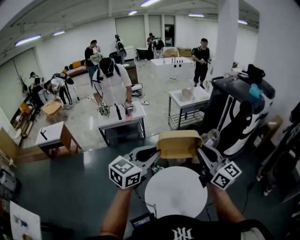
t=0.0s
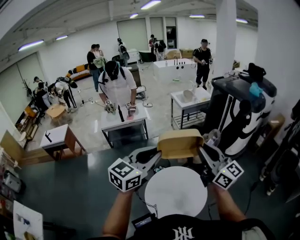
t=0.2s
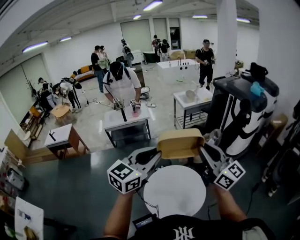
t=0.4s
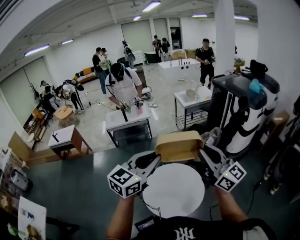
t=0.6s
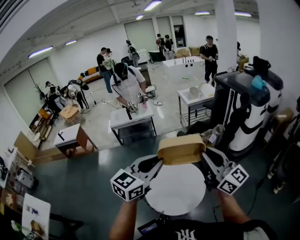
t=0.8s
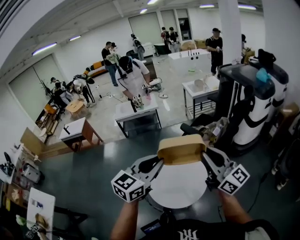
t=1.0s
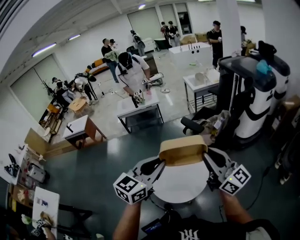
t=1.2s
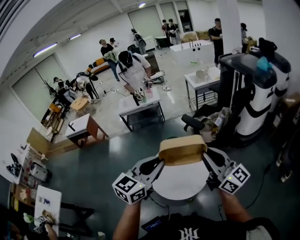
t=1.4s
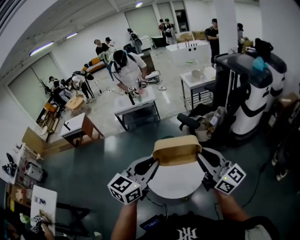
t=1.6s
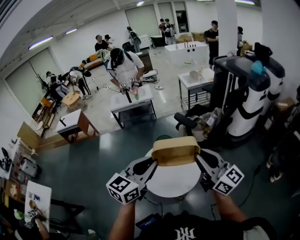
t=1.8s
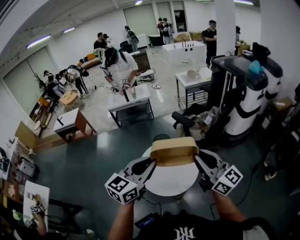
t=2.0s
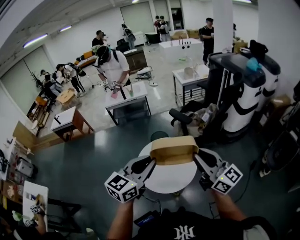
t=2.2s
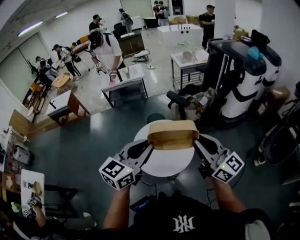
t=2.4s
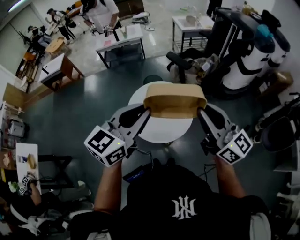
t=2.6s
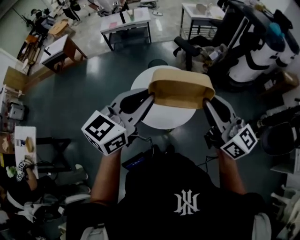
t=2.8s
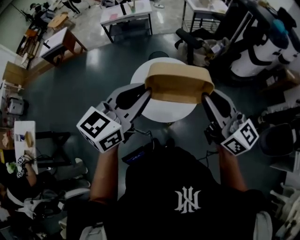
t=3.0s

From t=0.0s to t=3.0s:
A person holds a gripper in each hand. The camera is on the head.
From t=0.0s to t=1.6s: Both grippers travel together backward and to the right, about 25 cm.
From t=1.6s to t=3.0s: The right gripper ends up some 5 cm from where it was, while the left gripper moves roughly 5 cm.

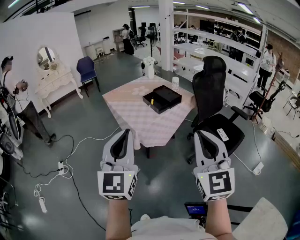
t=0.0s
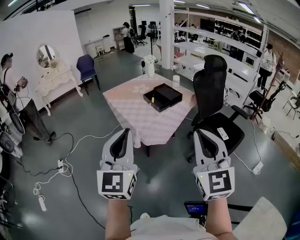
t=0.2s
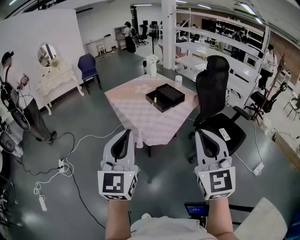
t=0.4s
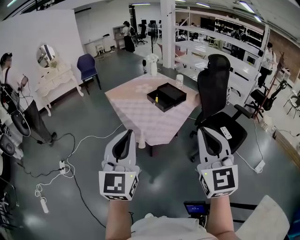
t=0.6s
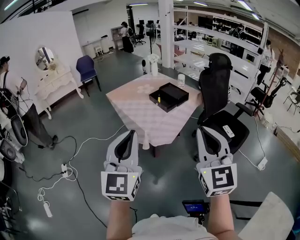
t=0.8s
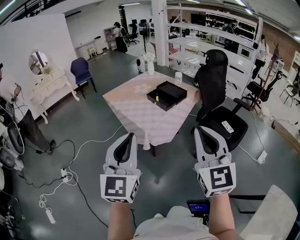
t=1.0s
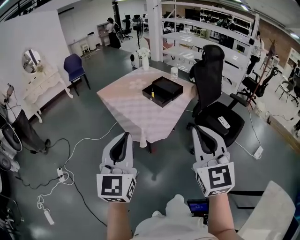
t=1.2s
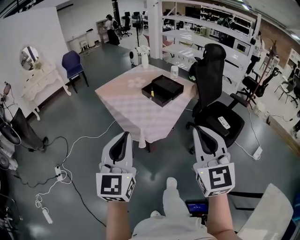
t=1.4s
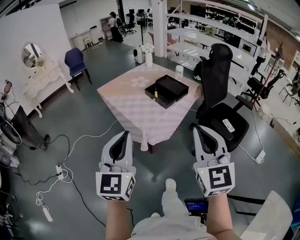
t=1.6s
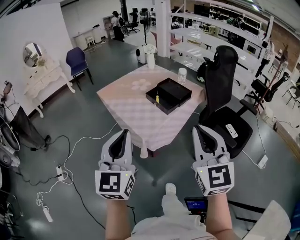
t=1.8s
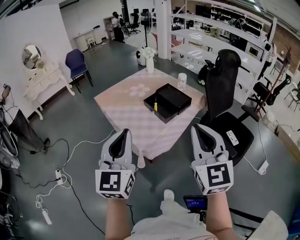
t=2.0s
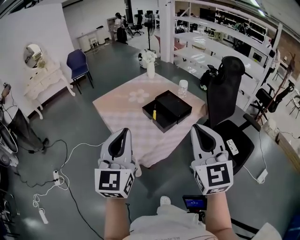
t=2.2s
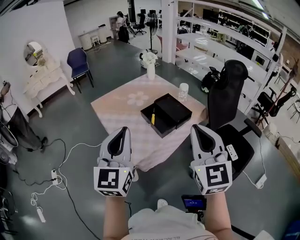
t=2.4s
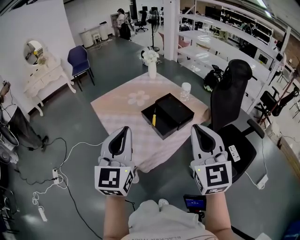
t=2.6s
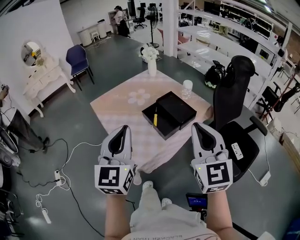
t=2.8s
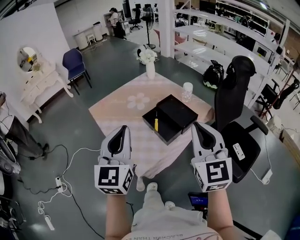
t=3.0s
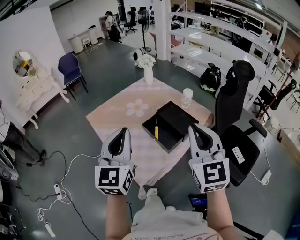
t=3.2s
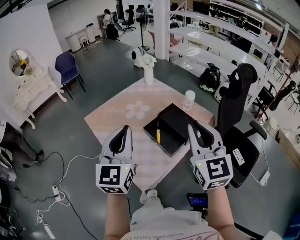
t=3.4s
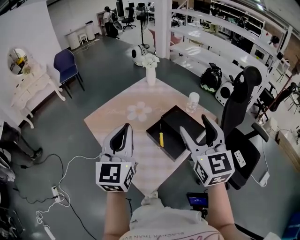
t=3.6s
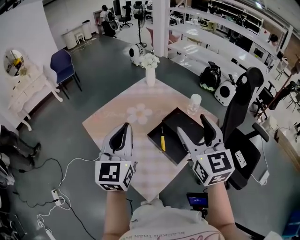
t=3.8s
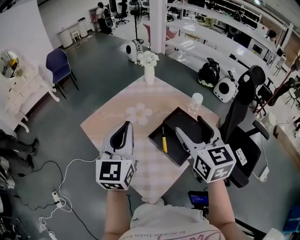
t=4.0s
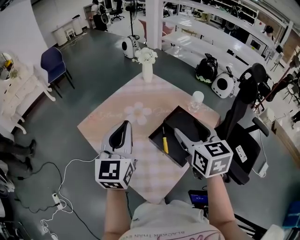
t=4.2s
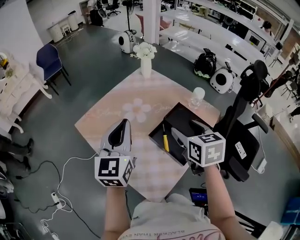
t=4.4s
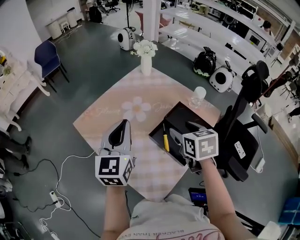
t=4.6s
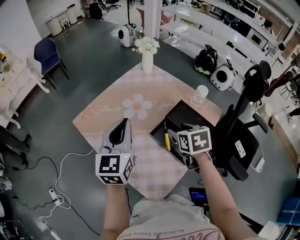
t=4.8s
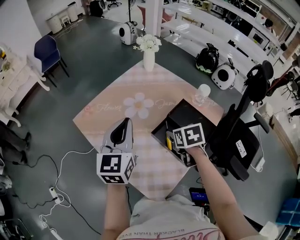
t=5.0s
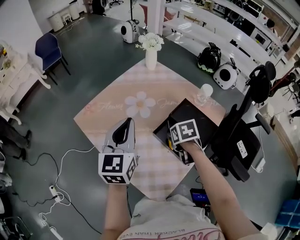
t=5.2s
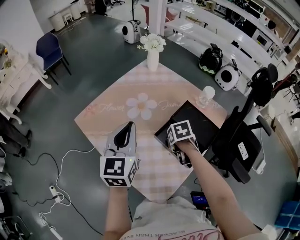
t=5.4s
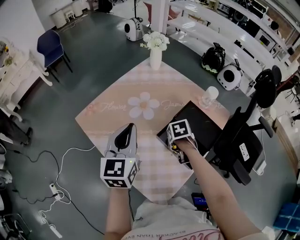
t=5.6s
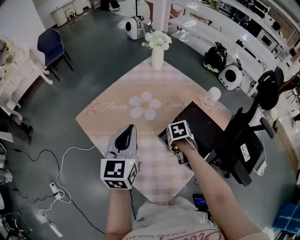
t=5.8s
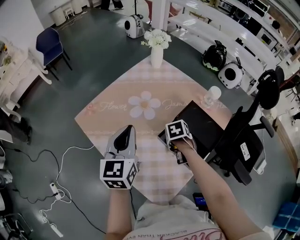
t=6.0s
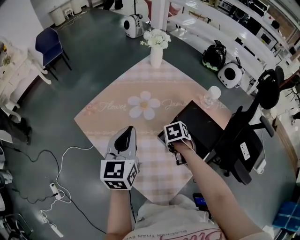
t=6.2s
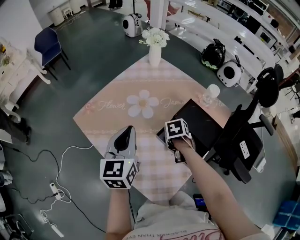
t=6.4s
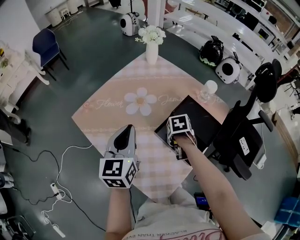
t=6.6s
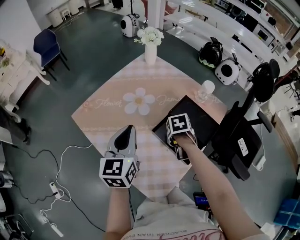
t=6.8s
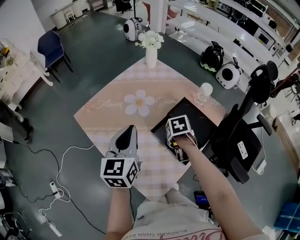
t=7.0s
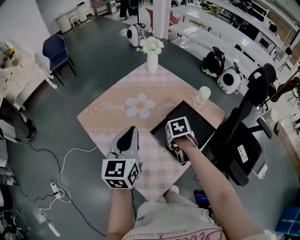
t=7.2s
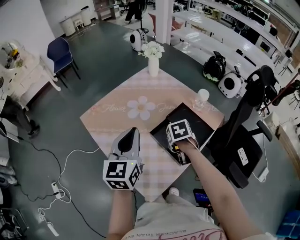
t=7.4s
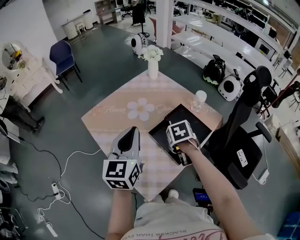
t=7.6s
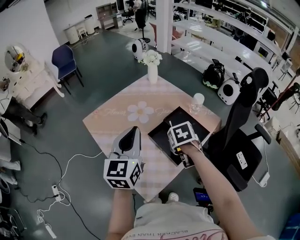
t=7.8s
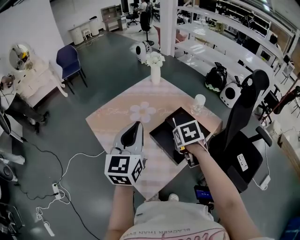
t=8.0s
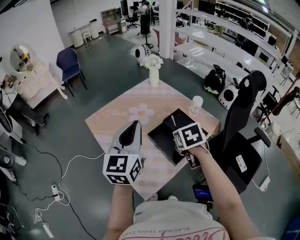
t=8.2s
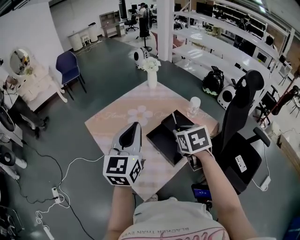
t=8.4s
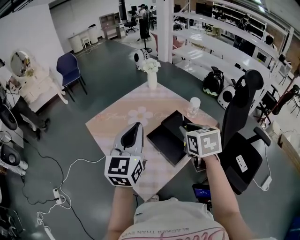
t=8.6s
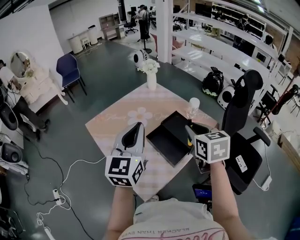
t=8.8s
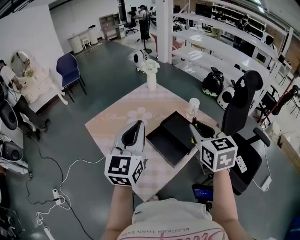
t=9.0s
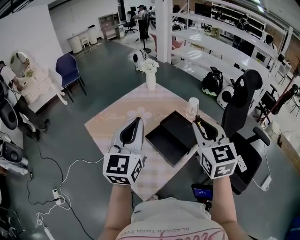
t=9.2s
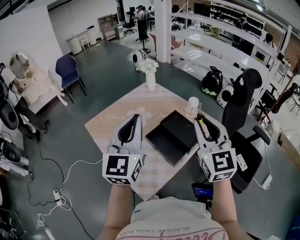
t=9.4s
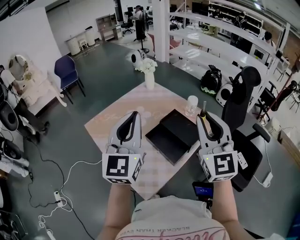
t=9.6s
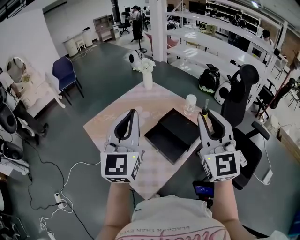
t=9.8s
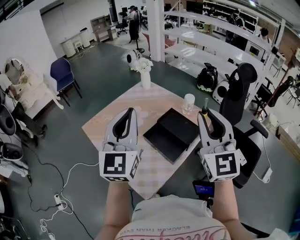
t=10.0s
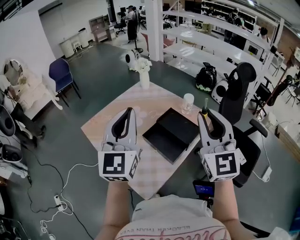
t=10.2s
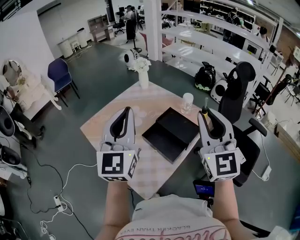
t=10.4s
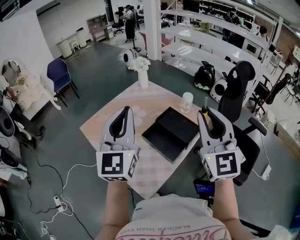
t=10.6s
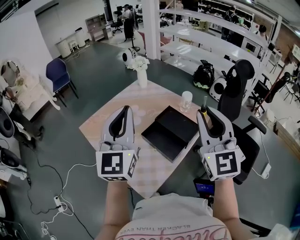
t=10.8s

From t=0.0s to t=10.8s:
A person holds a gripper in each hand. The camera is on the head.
From t=0.0s to t=1.6s: The right gripper goes roughly 15 cm forward and to the left. Meanwhile the left gripper heads forward, to the left and downward, covering approximately 15 cm.
From t=1.6s to t=3.0s: Both grippers travel together forward, roughly 30 cm.
From t=3.0s to t=4.6s: The left gripper is displaced forward by roughly 25 cm. The right gripper goes roughly 30 cm forward, downward and to the left, points its fingers roughly 40 degrees further downward, and opens its fingers.
From t=4.6s to t=6.2s: The left gripper is displaced downward by approximately 5 cm. Meanwhile the right gripper goes roughly 20 cm downward, angles its fingers downward, by some 40 degrees, and closes up.
From t=6.2s to t=7.8s: The left gripper changes place by approximately 15 cm. Meanwhile the right gripper is displaced upward by approximately 15 cm, and changes its angle by approximately 20 degrees.
From t=7.8s to t=9.2s: The right gripper shifts about 25 cm upward, and tips its fingers upward by some 50 degrees. The left gripper moves upward, some 5 cm.
From t=9.2s to t=10.8s: The right gripper heads upward, covering about 5 cm, and changes its angle by about 20 degrees.

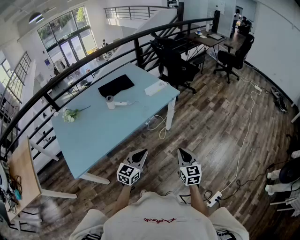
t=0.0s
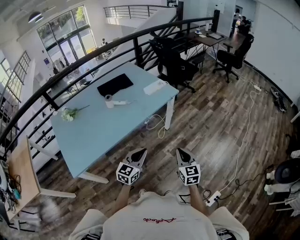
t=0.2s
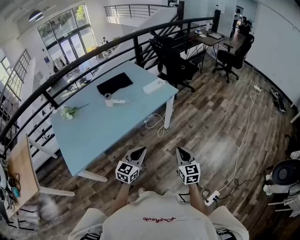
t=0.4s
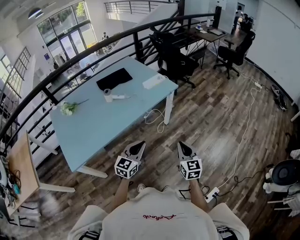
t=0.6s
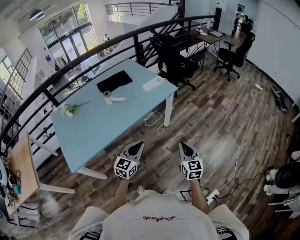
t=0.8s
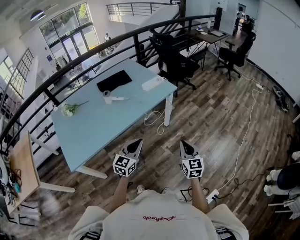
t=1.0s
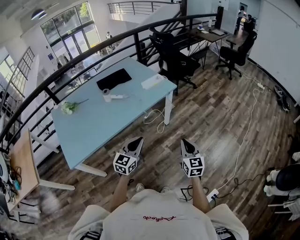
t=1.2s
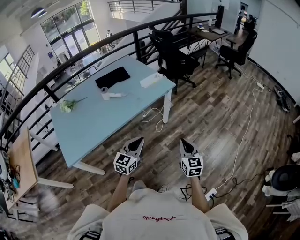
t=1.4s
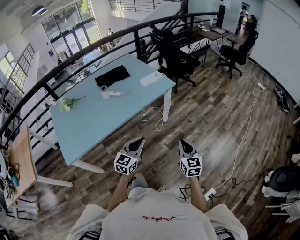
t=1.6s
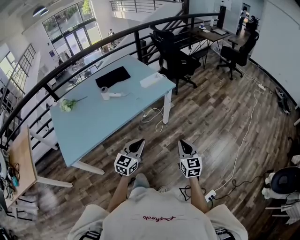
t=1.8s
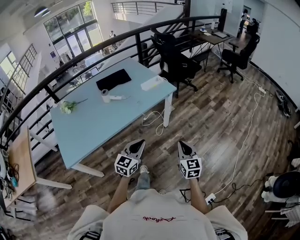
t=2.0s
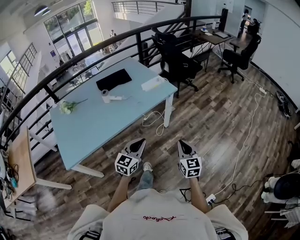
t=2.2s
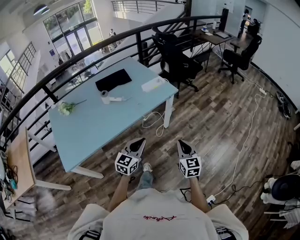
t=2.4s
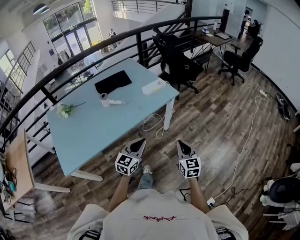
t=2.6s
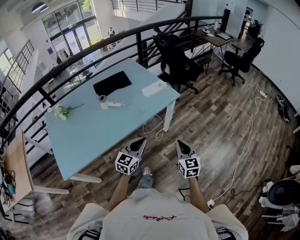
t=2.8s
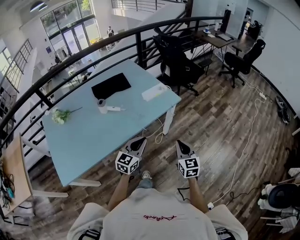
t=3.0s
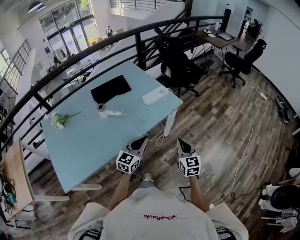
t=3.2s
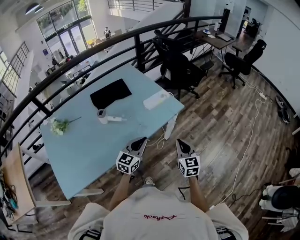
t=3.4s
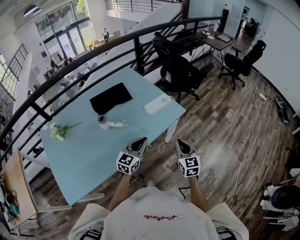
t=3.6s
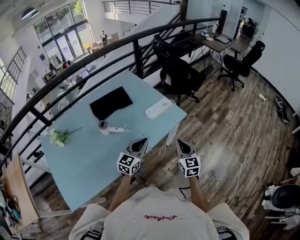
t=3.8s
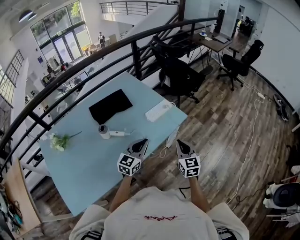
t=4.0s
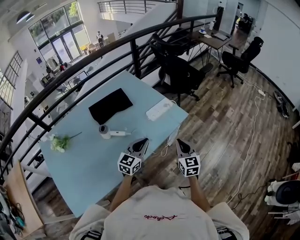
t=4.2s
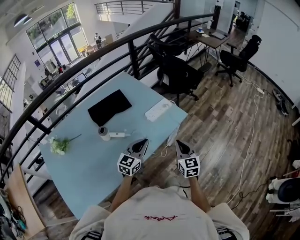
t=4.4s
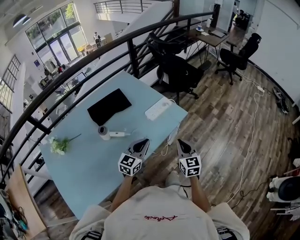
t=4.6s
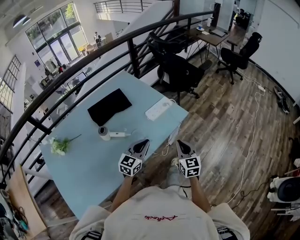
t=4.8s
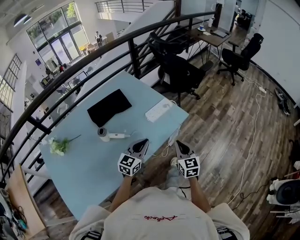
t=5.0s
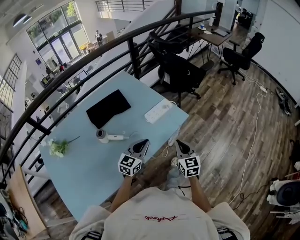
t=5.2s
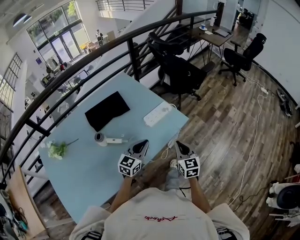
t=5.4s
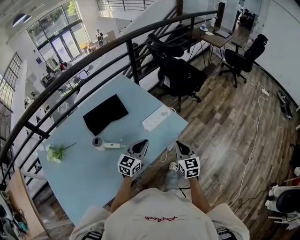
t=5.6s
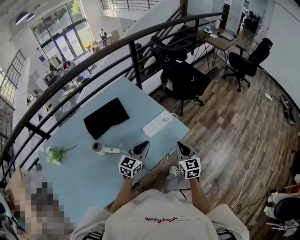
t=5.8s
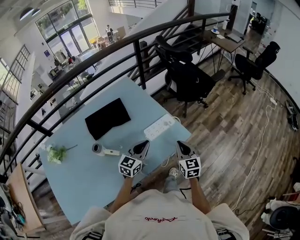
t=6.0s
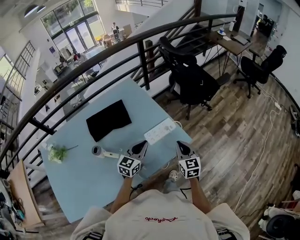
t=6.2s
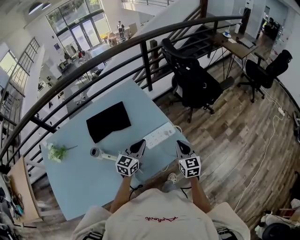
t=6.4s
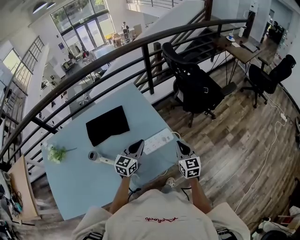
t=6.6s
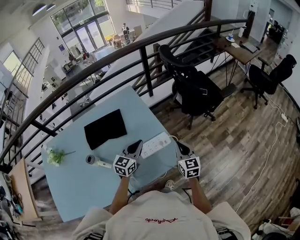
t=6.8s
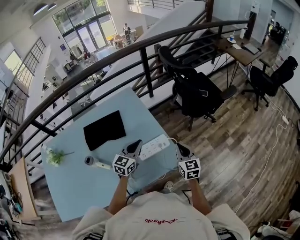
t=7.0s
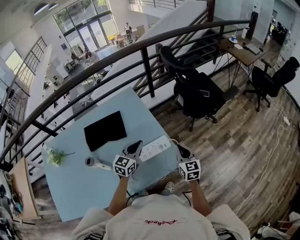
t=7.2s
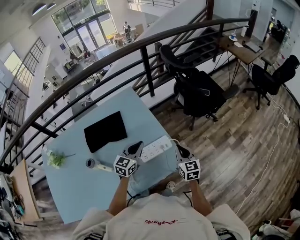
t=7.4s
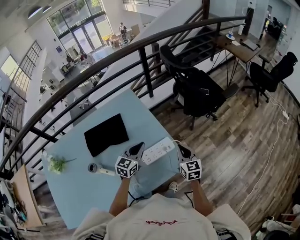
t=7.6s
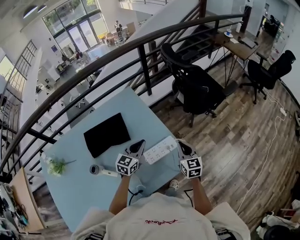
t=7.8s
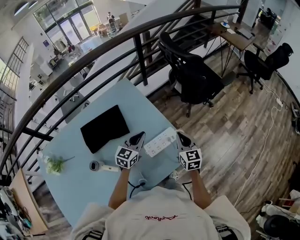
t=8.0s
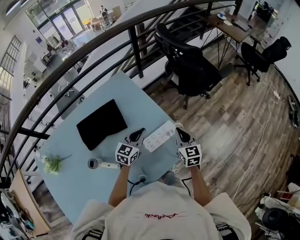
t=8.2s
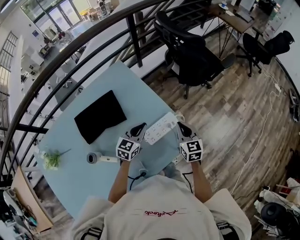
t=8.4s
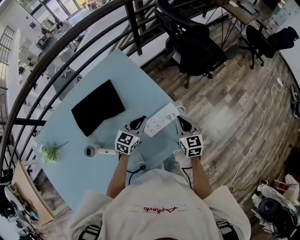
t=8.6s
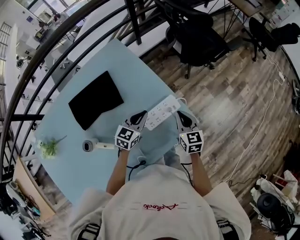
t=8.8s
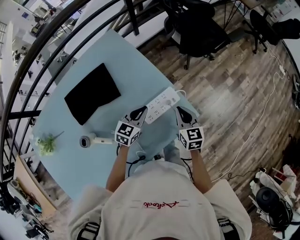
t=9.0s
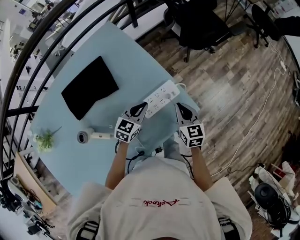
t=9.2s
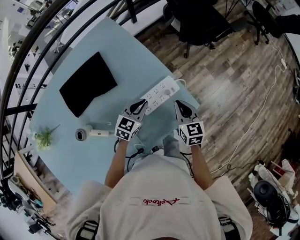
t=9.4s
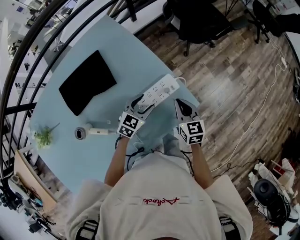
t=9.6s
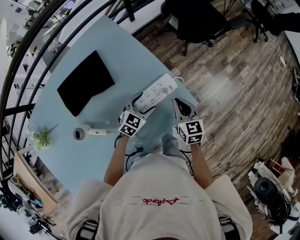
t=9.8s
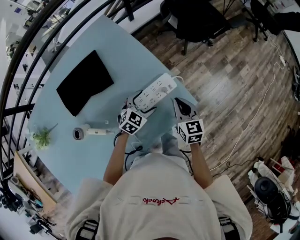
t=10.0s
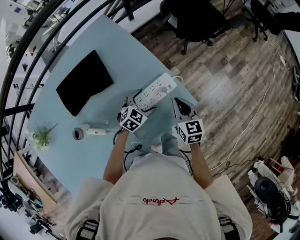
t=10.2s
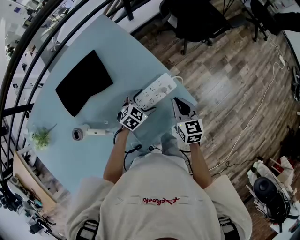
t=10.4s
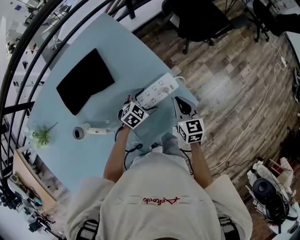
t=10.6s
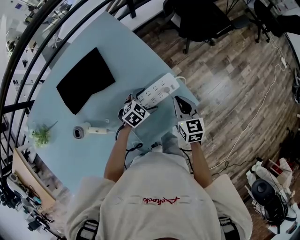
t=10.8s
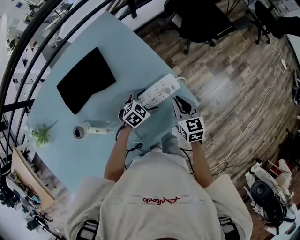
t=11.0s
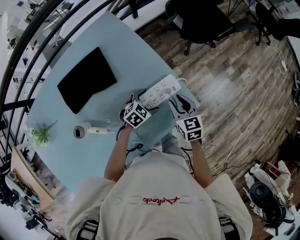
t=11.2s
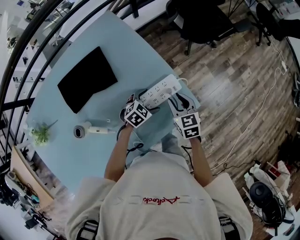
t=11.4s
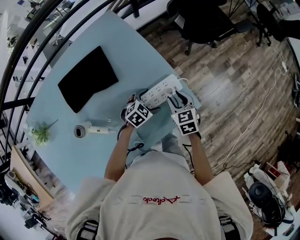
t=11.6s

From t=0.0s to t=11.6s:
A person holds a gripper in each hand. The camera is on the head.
From t=0.0s to t=1.4s: The right gripper travels to the right by about 10 cm. Meanwhile the left gripper goes about 5 cm to the right.
From t=1.4s to t=2.8s: The grippers both shift forward by roughly 15 cm.
From t=2.8s to t=4.4s: Both grippers travel together forward and to the left, roughly 25 cm.
From t=4.4s to t=5.8s: The two grippers go about 15 cm forward.
From t=5.8s to t=7.2s: The two grippers go approximately 20 cm forward.
From t=7.2s to t=8.8s: The right gripper is displaced to the left and downward by roughly 10 cm. The left gripper heads downward, covering roughly 10 cm.
From t=8.8s to t=10.2s: The left gripper heads downward and to the right, covering roughly 15 cm, changes its angle by roughly 30 degrees, and opens.
From t=10.2s to t=11.6s: The right gripper shifts by approximately 5 cm, and opens its fingers.
